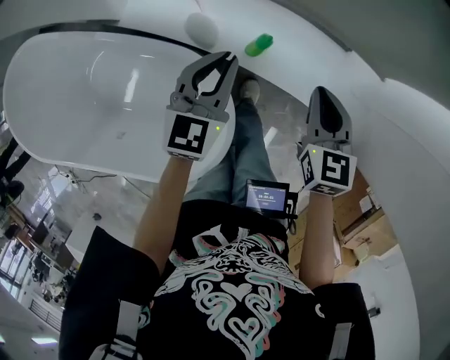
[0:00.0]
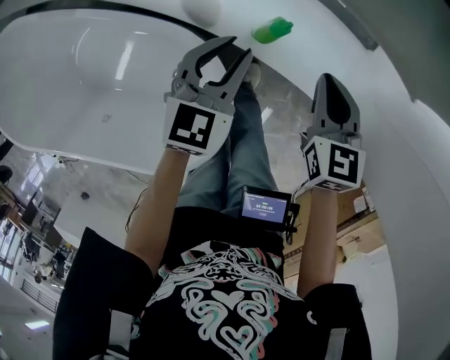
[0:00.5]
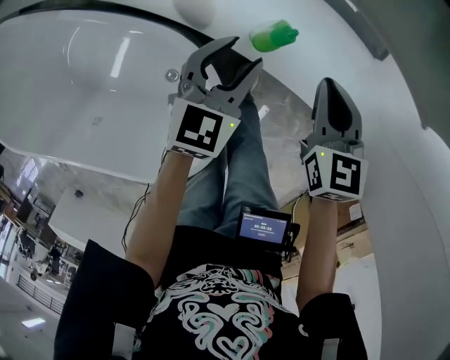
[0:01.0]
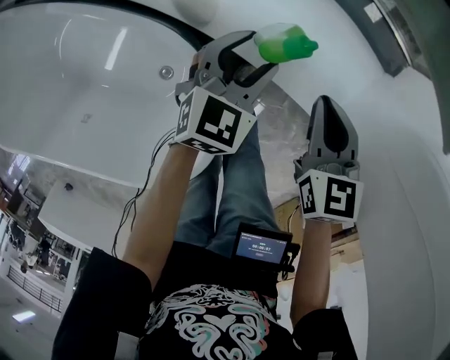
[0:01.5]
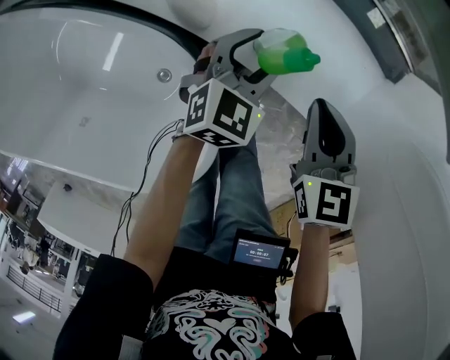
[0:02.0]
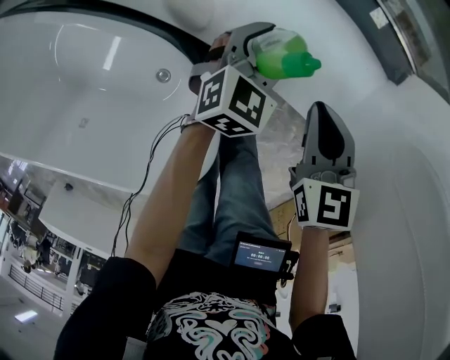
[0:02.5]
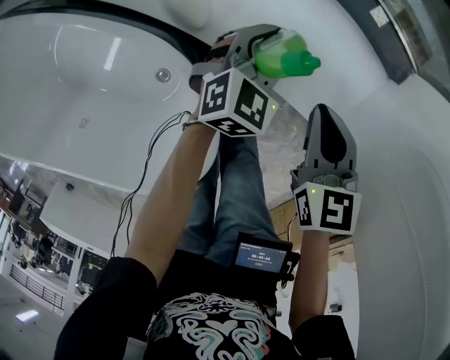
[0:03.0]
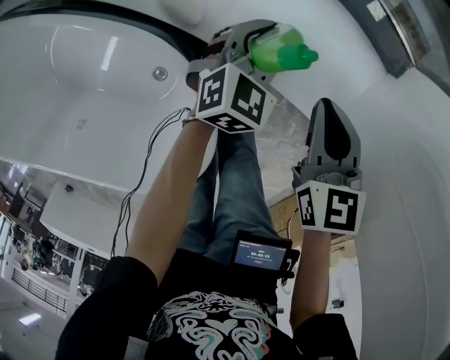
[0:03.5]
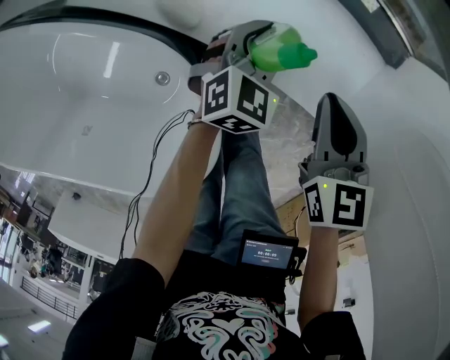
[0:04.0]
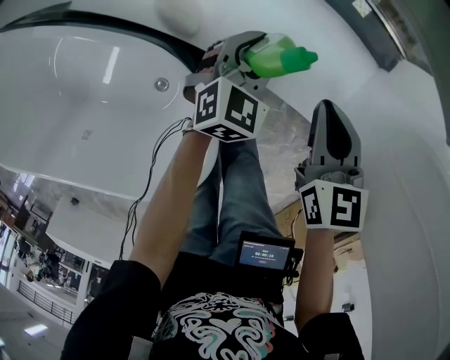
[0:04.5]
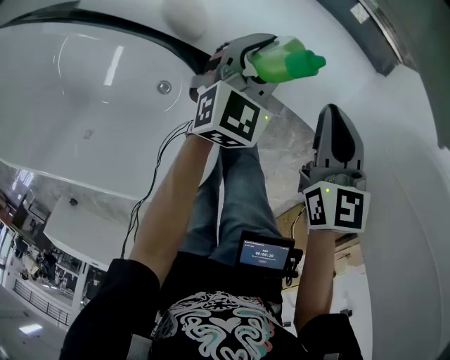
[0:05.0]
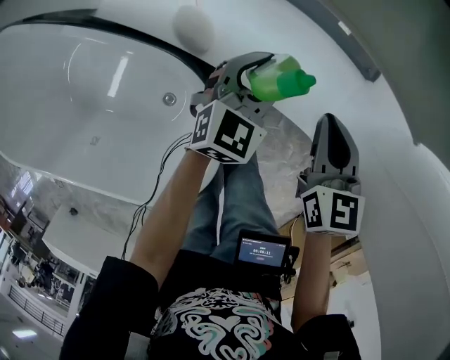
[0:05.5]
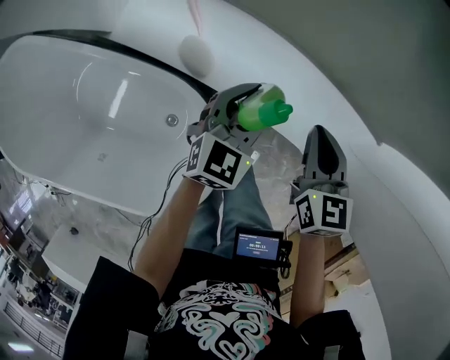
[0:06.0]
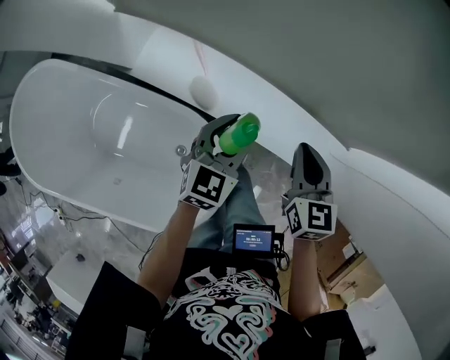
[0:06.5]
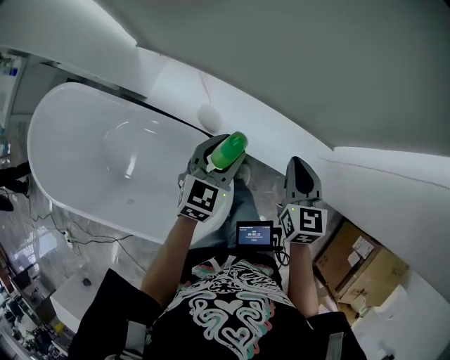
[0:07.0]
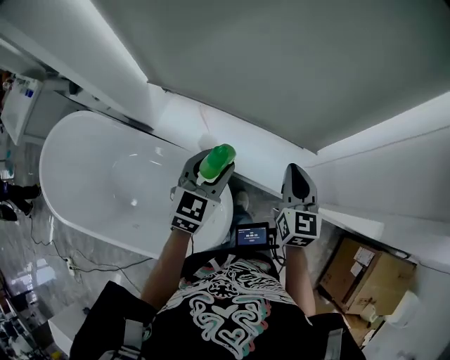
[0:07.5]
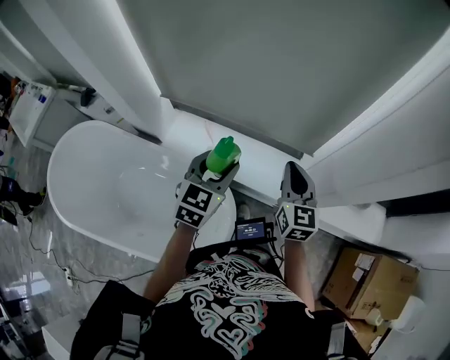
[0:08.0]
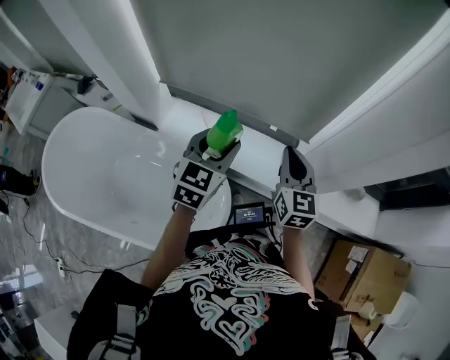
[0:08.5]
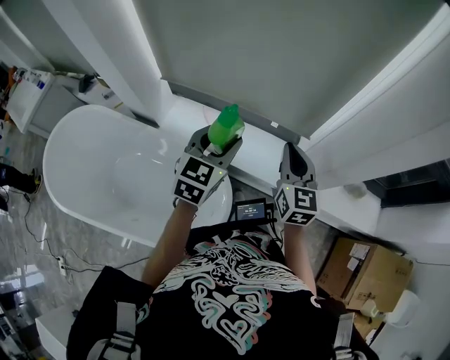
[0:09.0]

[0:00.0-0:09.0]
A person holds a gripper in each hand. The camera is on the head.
0:00.0 to 0:02.0: Both grippers move downward, about 20 cm. The left gripper opens.
0:02.0 to 0:04.5: The grippers move only a little.
0:04.5 to 0:07.0: The two grippers go about 30 cm upward.
0:07.0 to 0:09.0: The two grippers go about 20 cm upward and backward.

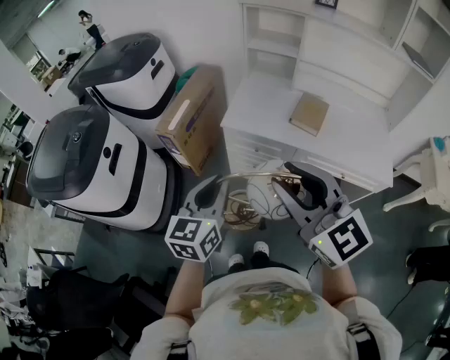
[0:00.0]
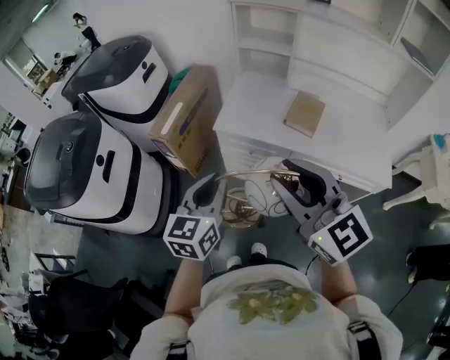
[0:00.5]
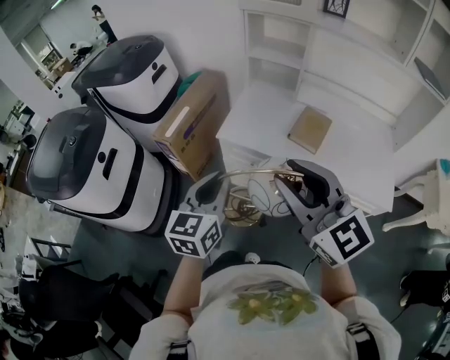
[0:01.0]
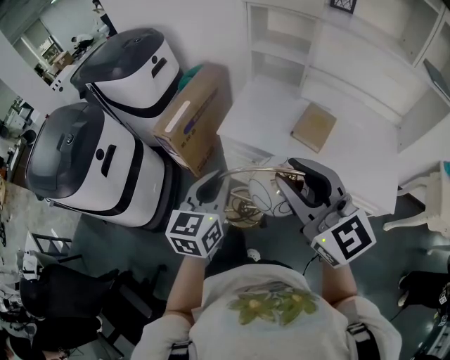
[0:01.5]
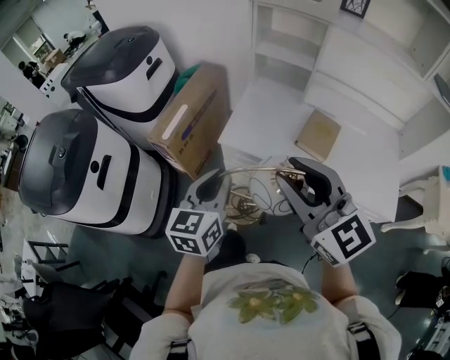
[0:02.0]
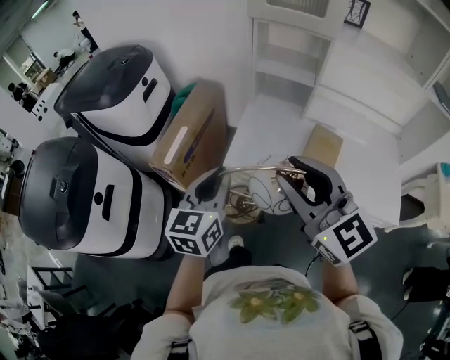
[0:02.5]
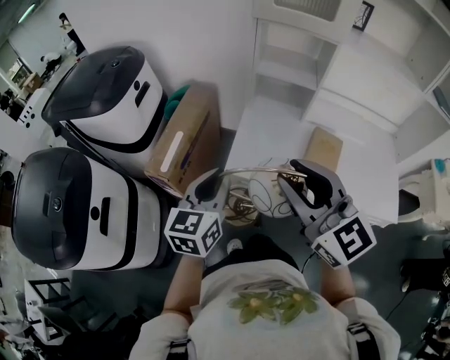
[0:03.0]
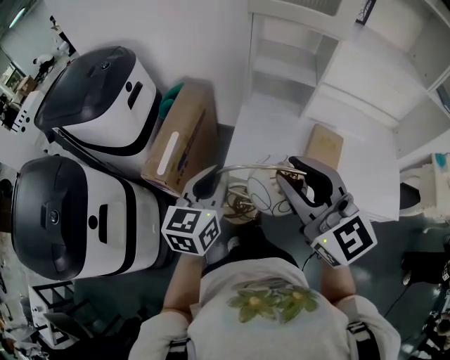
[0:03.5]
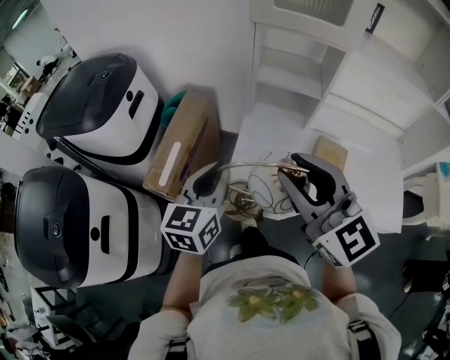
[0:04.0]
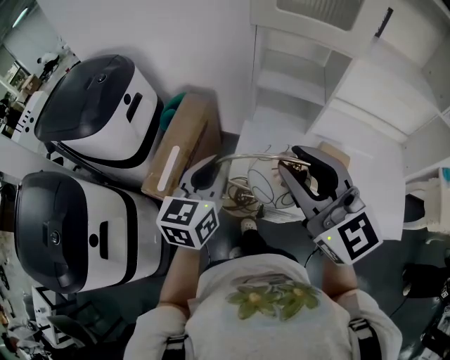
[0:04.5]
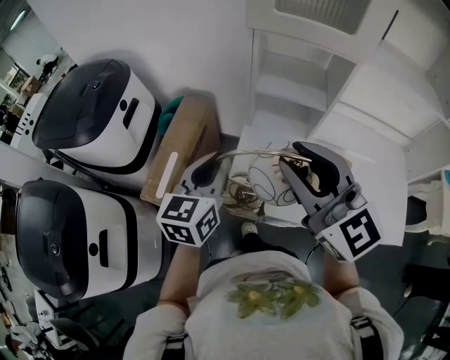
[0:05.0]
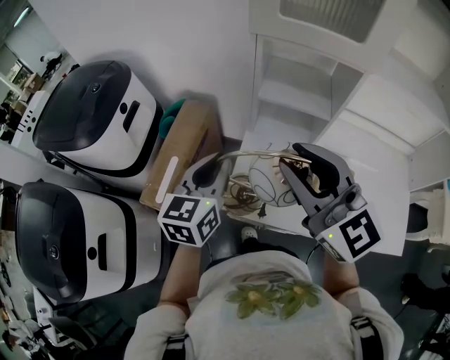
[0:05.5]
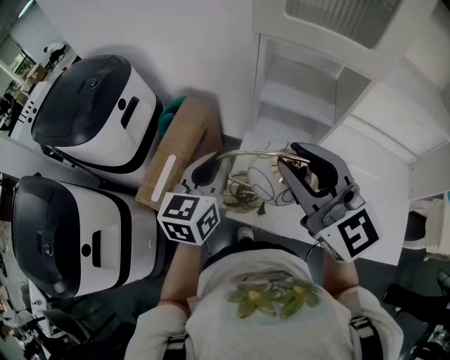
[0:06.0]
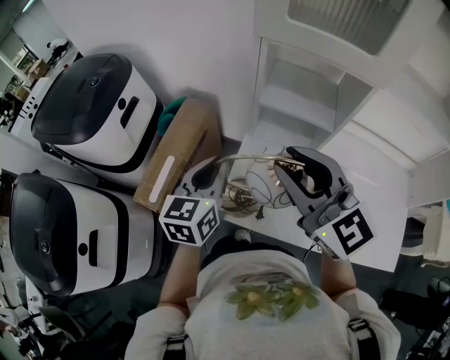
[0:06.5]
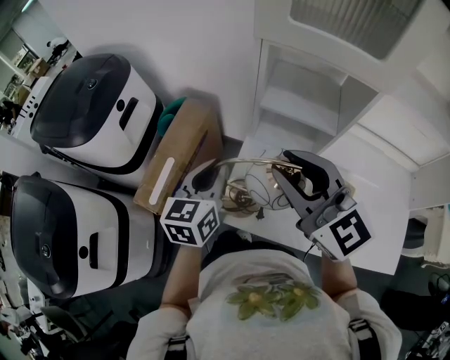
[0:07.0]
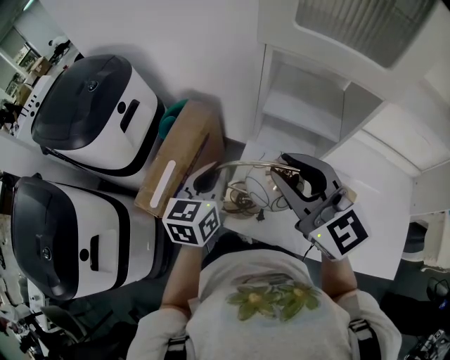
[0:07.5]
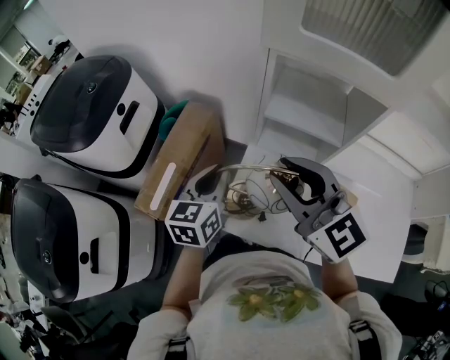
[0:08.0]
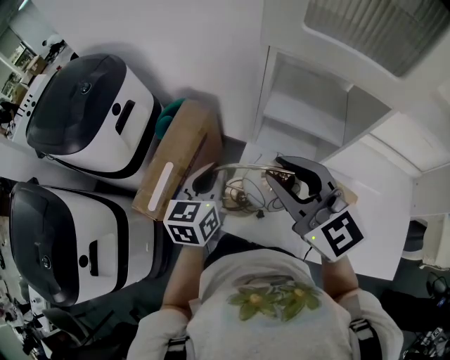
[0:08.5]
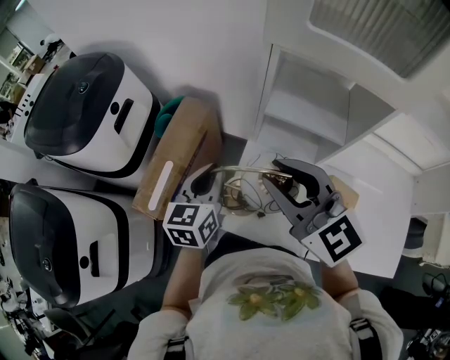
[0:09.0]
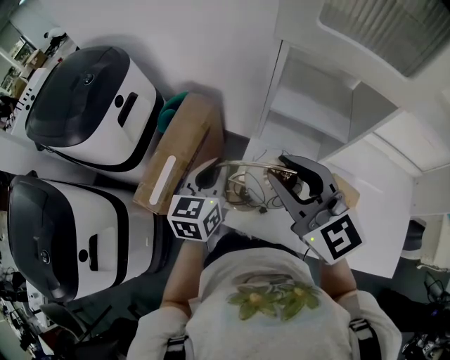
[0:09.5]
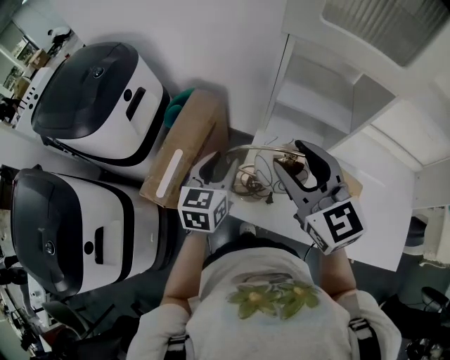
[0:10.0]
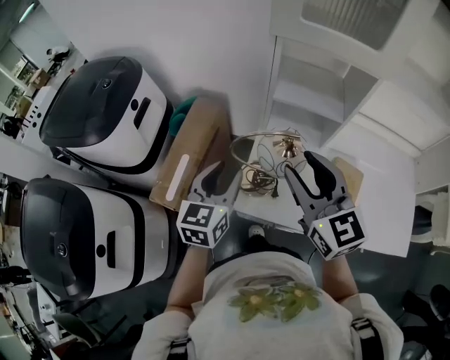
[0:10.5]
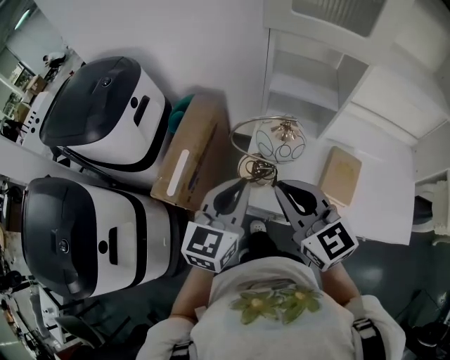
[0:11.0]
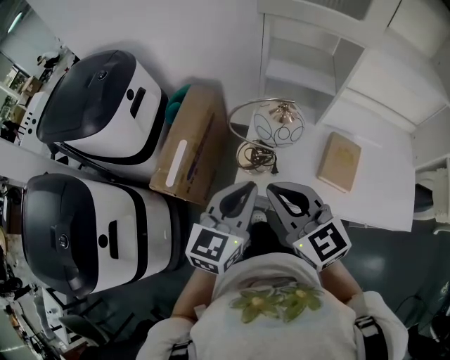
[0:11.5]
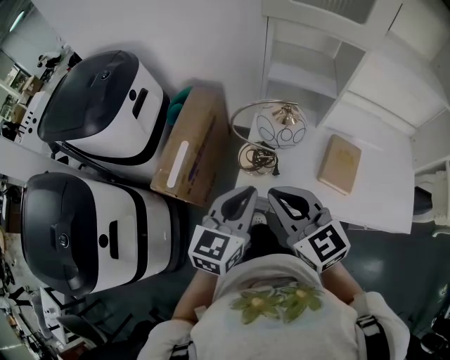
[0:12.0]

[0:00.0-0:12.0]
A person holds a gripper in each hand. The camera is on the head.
0:00.0 to 0:02.0: Both grippers travel together forward, some 15 cm.
0:02.0 to 0:04.0: The grippers both shift forward by about 20 cm.
0:04.0 to 0:06.0: Both grippers move forward, approximately 15 cm.
0:06.0 to 0:08.0: The right gripper shifts some 5 cm forward; the left gripper goes roughly 10 cm downward and forward.
0:08.0 to 0:10.0: The left gripper opens its fingers.
0:10.0 to 0:12.0: Both grippers move backward, some 20 cm. The right gripper closes up, while the left gripper closes.

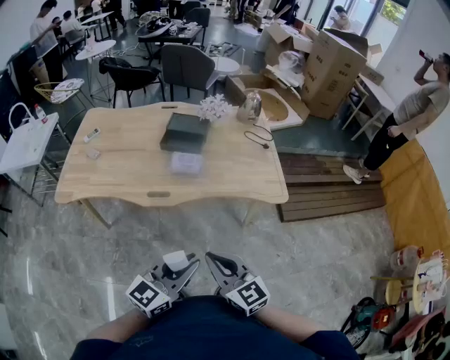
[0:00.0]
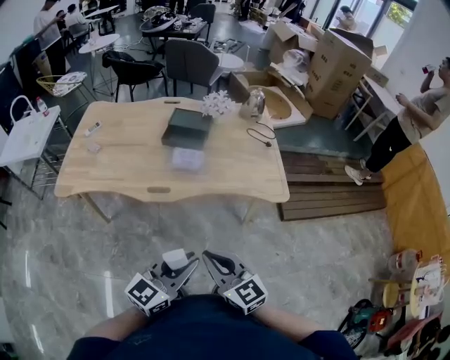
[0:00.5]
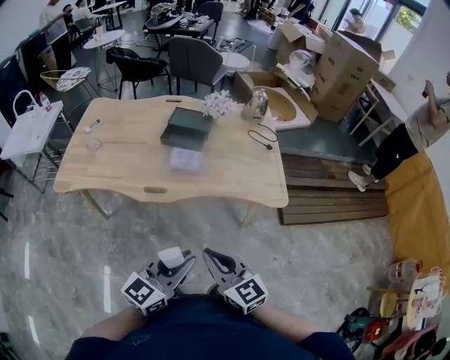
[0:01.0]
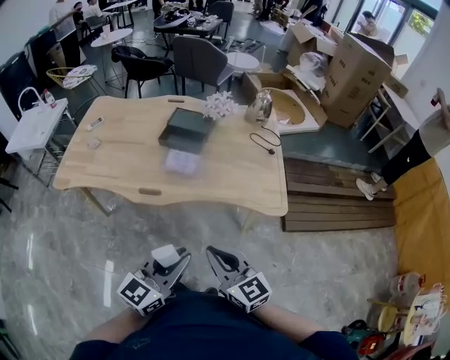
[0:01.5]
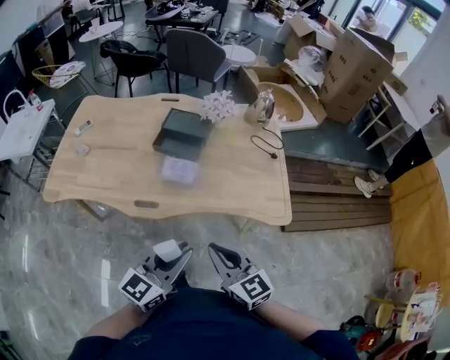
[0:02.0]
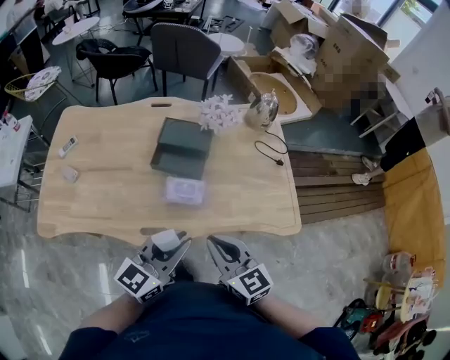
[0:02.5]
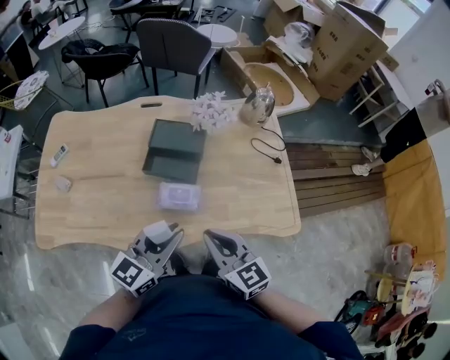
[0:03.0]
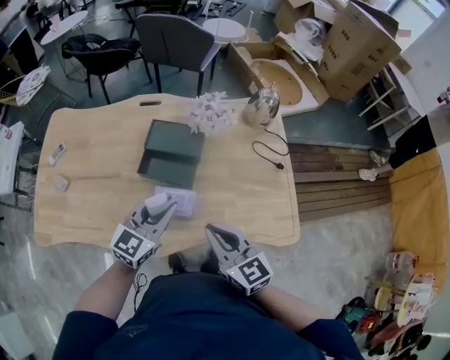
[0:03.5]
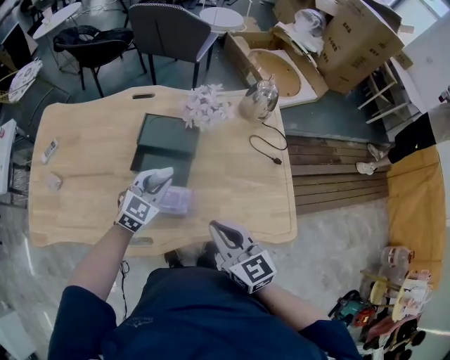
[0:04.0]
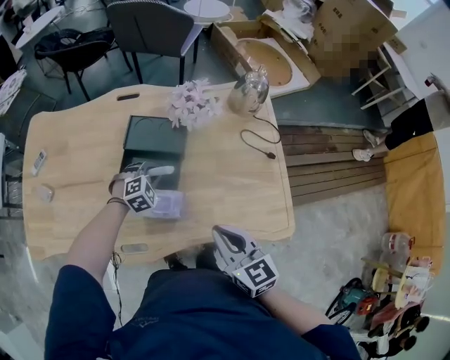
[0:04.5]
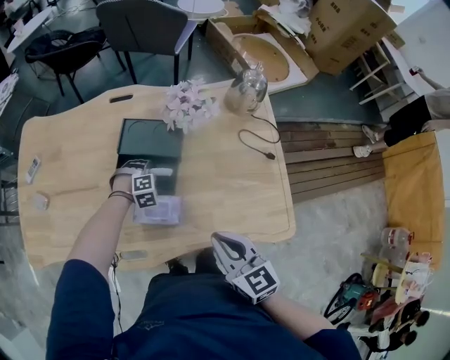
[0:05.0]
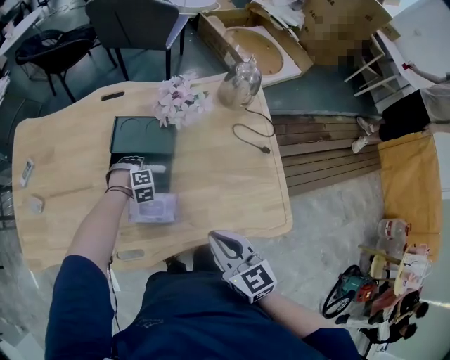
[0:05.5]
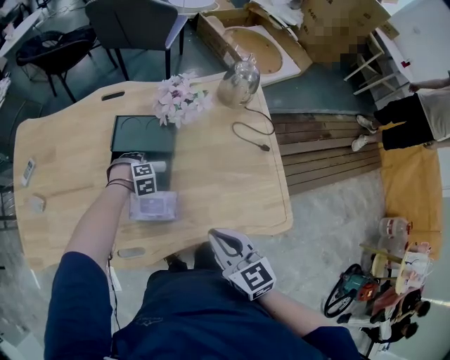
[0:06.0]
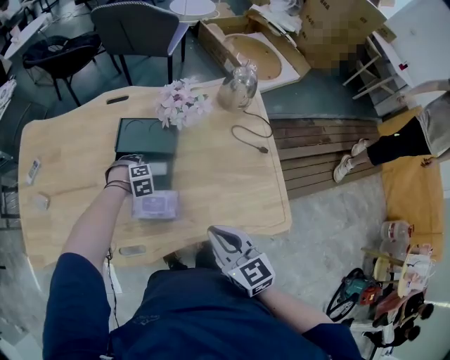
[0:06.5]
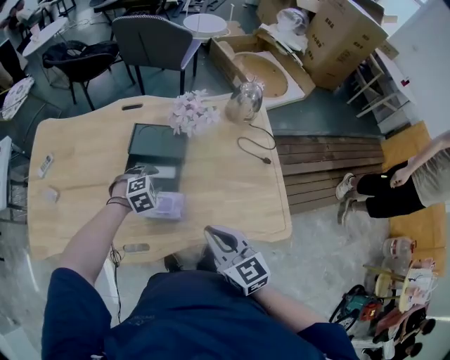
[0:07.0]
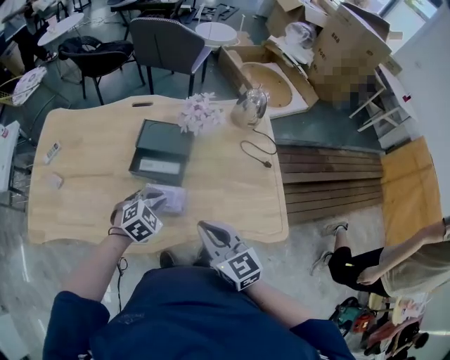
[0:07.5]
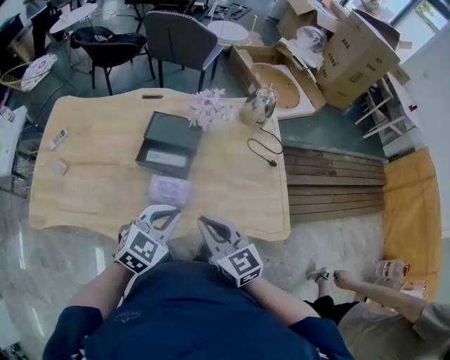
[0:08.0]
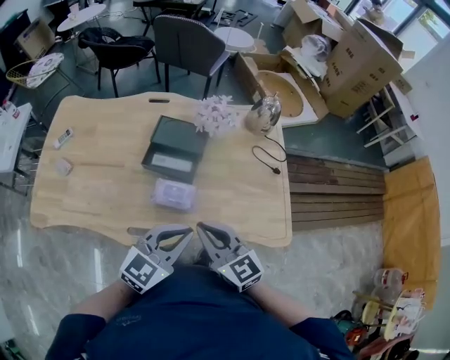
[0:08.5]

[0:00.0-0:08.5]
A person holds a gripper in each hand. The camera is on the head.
0:00.0 to 0:02.0: The grippers both shift forward by roughly 15 cm.
0:02.0 to 0:04.0: The left gripper is displaced forward by some 40 cm, and swivels approximately 40 degrees; the right gripper travels forward by about 30 cm.
0:04.0 to 0:06.5: The left gripper is displaced downward by some 20 cm, tilts its fingers roughly 50 degrees downward, and opens its fingers.
0:06.5 to 0:08.5: The right gripper moves some 10 cm; the left gripper goes some 30 cm upward, tips its fingers upward by approximately 60 degrees, and closes up.
